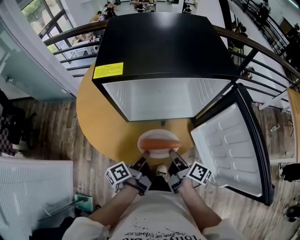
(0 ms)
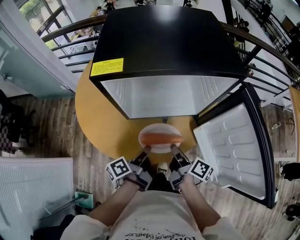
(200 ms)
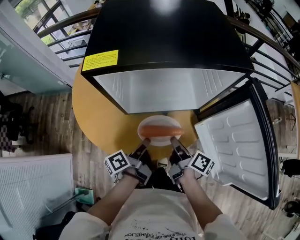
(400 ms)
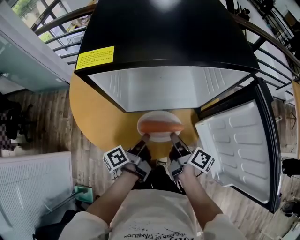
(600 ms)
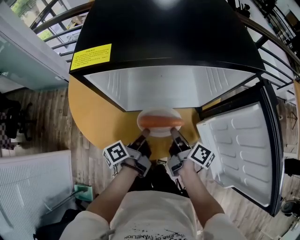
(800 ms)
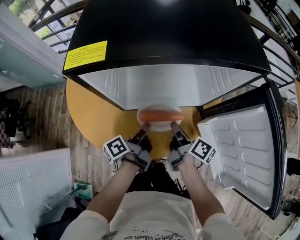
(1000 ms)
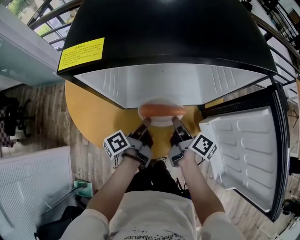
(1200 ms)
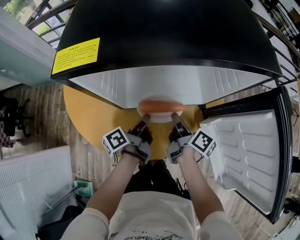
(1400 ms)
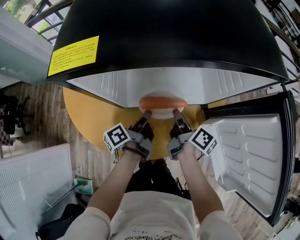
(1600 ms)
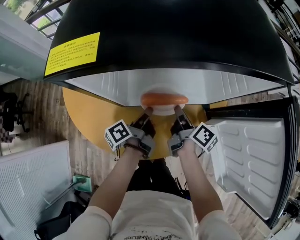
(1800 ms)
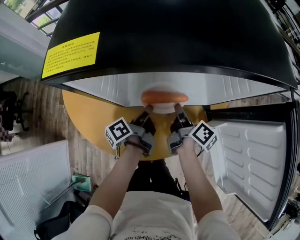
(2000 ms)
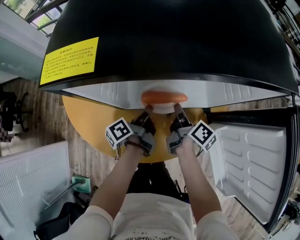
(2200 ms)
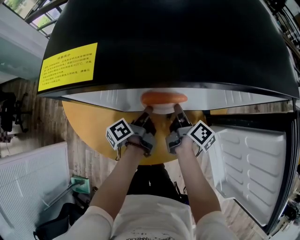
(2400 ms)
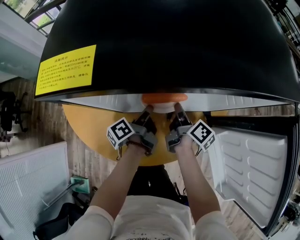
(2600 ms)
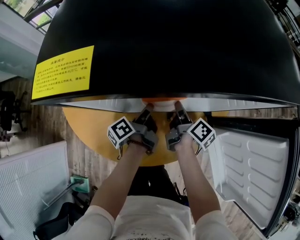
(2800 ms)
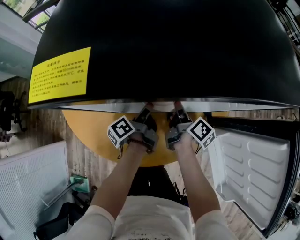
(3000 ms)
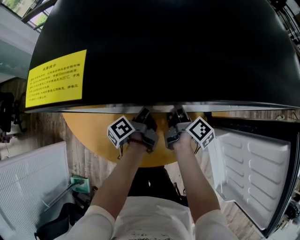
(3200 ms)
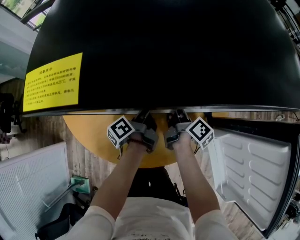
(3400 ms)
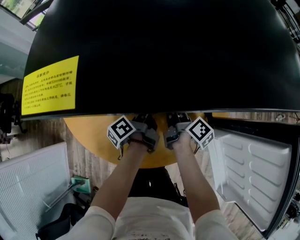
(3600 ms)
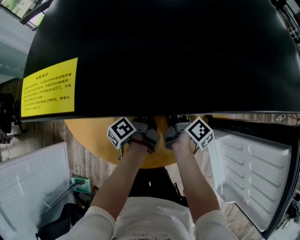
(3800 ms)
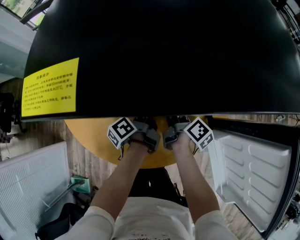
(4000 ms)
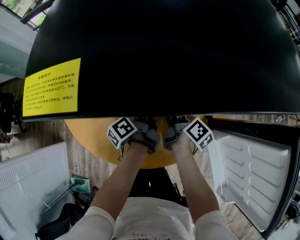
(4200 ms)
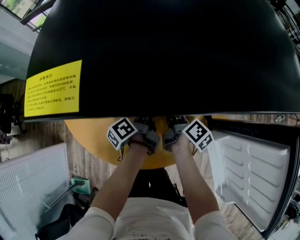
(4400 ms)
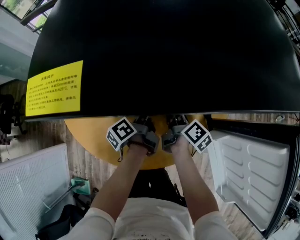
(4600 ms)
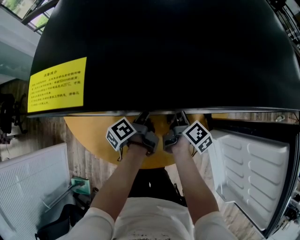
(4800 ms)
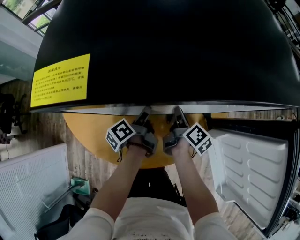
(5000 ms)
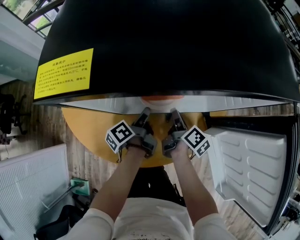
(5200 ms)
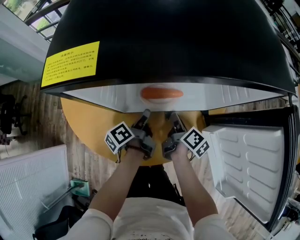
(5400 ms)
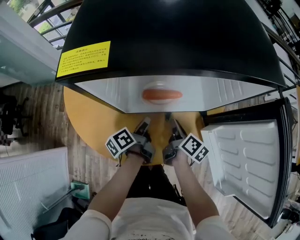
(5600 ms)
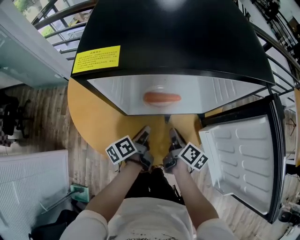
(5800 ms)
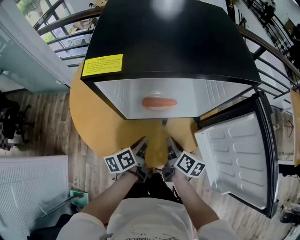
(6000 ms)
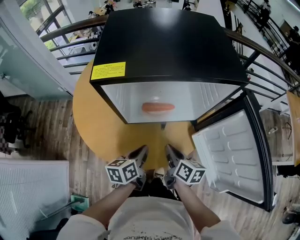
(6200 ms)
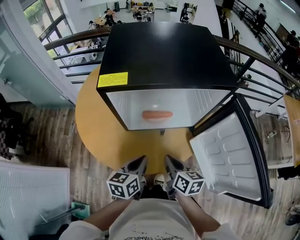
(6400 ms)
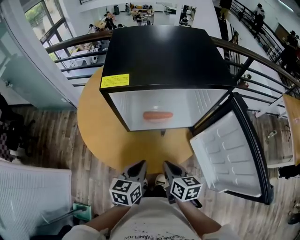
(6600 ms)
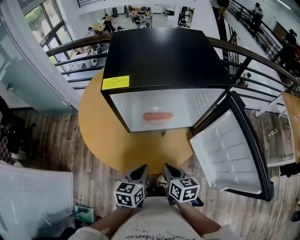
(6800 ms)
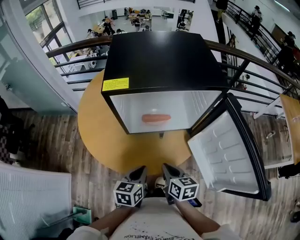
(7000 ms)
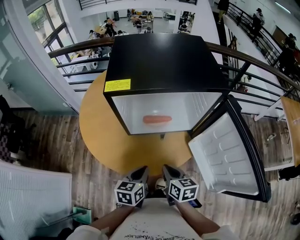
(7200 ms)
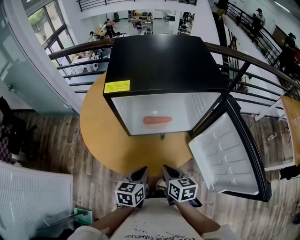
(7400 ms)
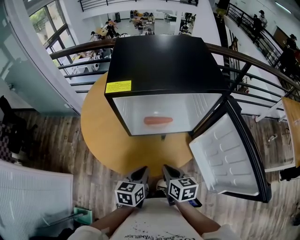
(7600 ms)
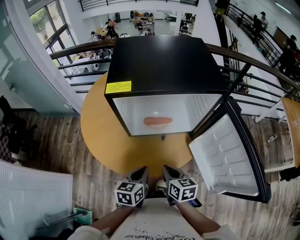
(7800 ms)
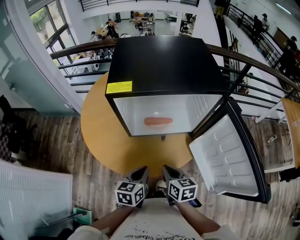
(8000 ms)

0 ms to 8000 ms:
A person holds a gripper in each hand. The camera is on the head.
0 ms to 1600 ms: The right gripper moves some 15 cm.
1600 ms to 3200 ms: The right gripper changes place by approximately 10 cm.
4800 ms to 6400 ms: The right gripper changes place by some 25 cm, and turns by some 40 degrees.

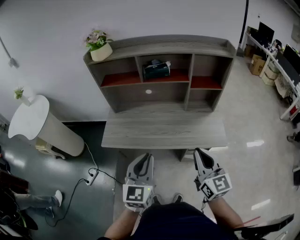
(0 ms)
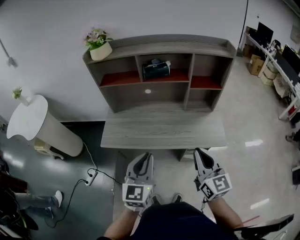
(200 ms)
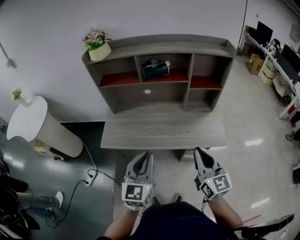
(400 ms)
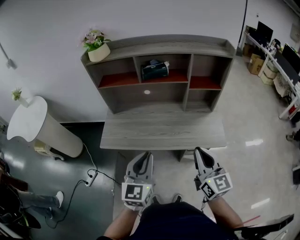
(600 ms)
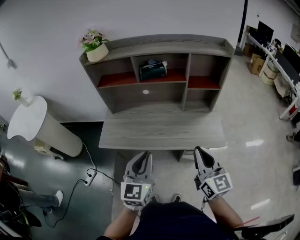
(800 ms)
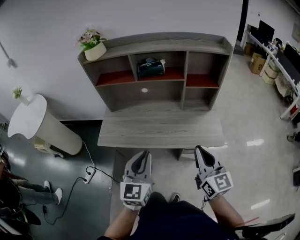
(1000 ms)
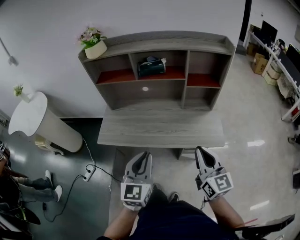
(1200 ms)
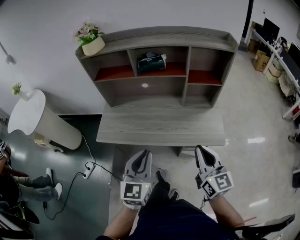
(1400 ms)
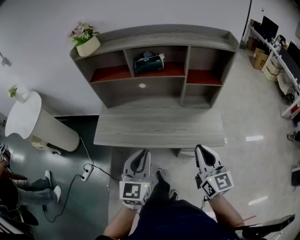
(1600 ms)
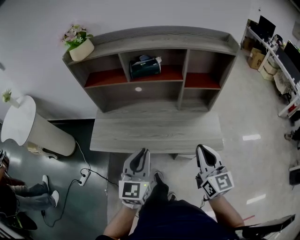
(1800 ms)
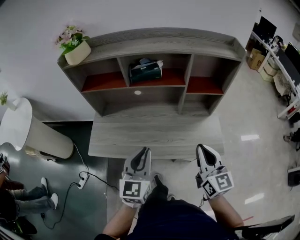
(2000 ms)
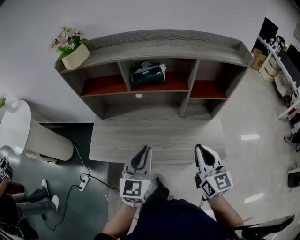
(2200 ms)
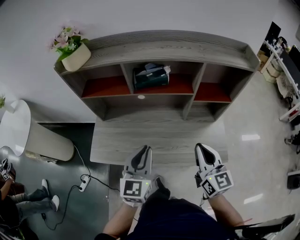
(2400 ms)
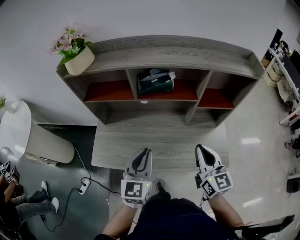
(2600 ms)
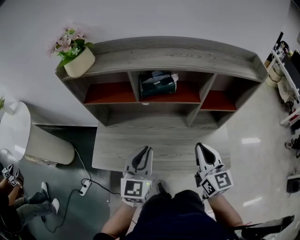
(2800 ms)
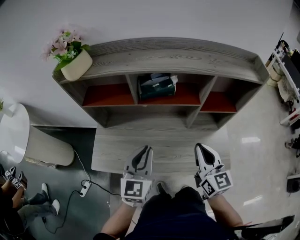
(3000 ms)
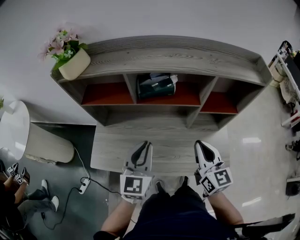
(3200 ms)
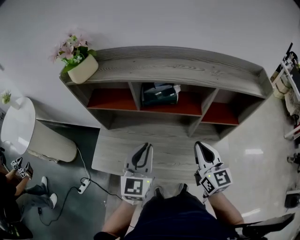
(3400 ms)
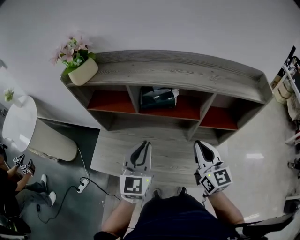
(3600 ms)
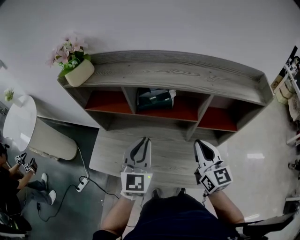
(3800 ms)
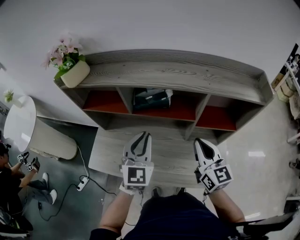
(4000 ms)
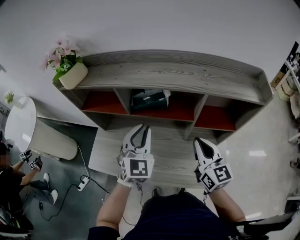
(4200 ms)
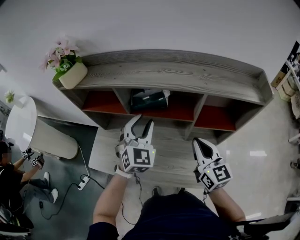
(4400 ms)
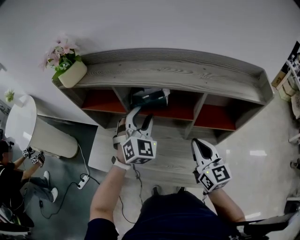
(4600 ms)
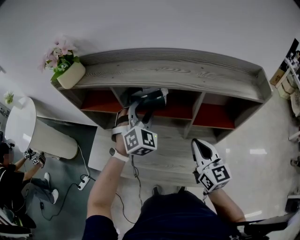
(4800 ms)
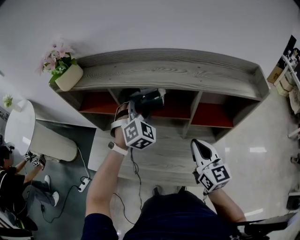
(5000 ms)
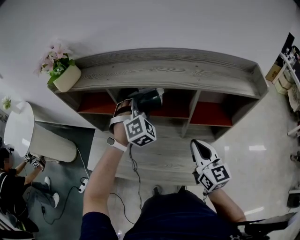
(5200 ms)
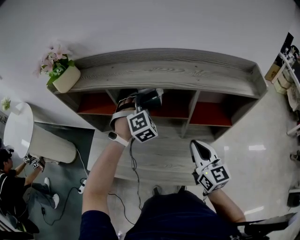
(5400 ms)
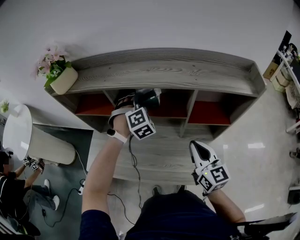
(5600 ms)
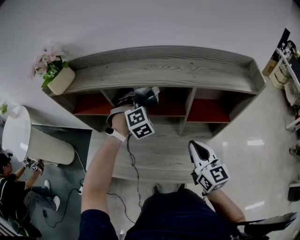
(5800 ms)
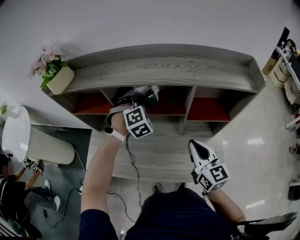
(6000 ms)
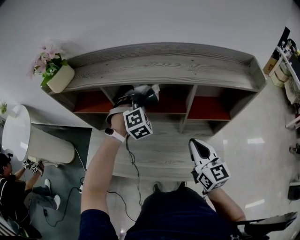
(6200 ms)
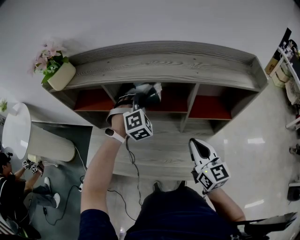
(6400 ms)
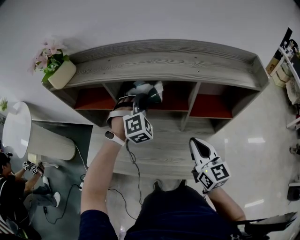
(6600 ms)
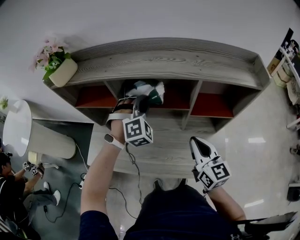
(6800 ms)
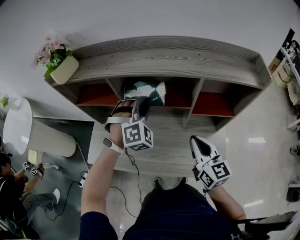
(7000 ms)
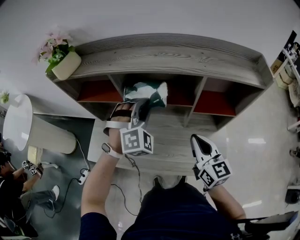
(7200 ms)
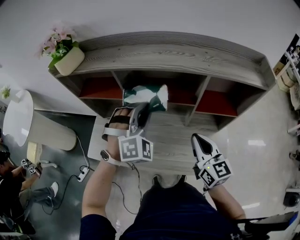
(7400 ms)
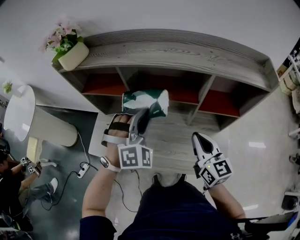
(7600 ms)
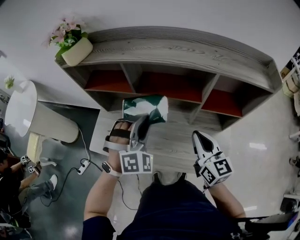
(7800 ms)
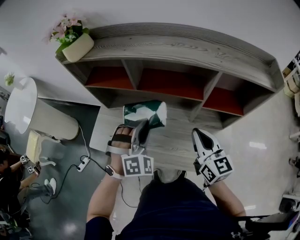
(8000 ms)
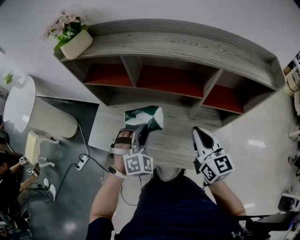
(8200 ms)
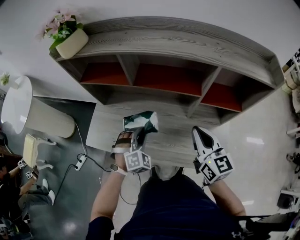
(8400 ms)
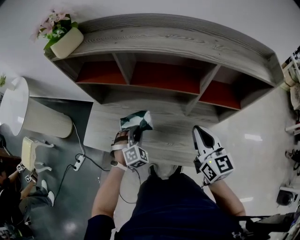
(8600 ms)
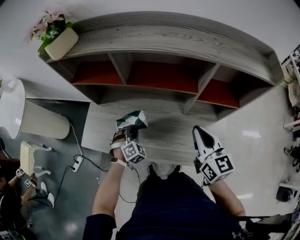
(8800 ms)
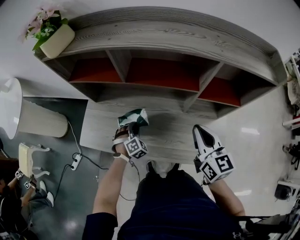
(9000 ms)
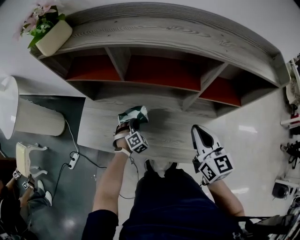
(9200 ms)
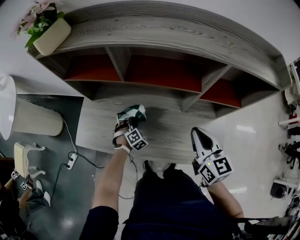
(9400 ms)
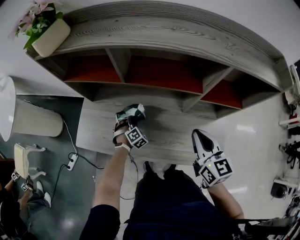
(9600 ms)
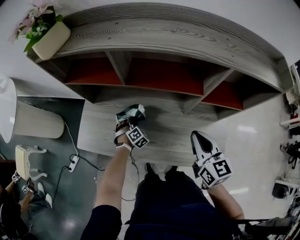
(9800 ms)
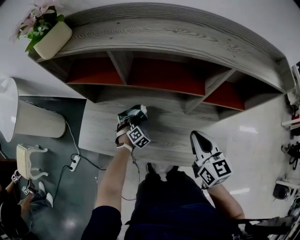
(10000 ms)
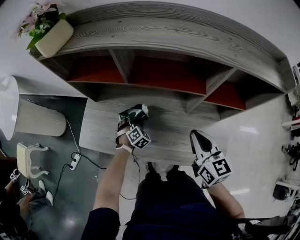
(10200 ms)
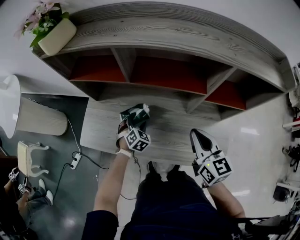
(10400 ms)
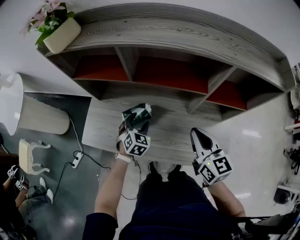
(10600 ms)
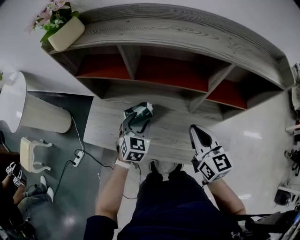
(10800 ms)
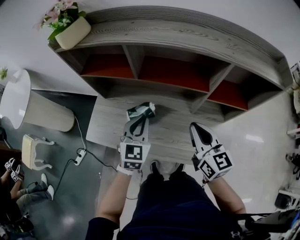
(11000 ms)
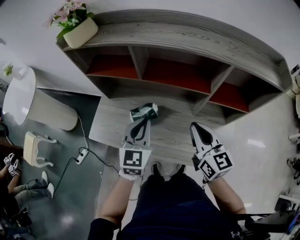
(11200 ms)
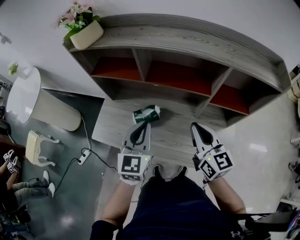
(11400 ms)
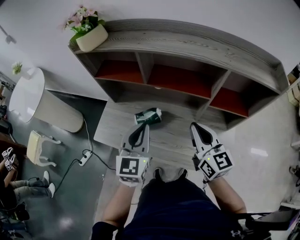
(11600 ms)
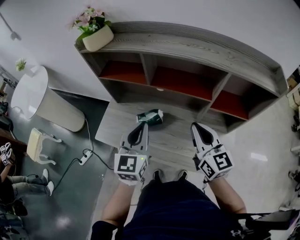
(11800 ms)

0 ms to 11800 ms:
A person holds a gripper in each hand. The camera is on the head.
0 ms to 1400 ms: The right gripper ends up roughly 5 cm from where it was.
1400 ms to 3000 ms: The grippers both shift forward by some 25 cm.
3000 ms to 4400 ms: Both grippers move forward and to the right, approximately 15 cm. The left gripper changes its angle by roughly 30 degrees, and opens its fingers.
4400 ms to 6000 ms: The left gripper goes about 10 cm forward and downward, and swivels some 50 degrees.
6000 ms to 7400 ms: The left gripper shifts approximately 15 cm backward and upward.
7400 ms to 8800 ms: The left gripper shifts approximately 30 cm downward, and rotates approximately 30 degrees.
8800 ms to 10400 ms: The left gripper moves forward, about 5 cm, goes downward and returns, some 10 cm each way, and opens.
10400 ms to 11800 ms: The left gripper travels upward and backward by roughly 30 cm, tips its fingers upward by about 40 degrees, and closes its fingers; the right gripper heads upward, covering some 10 cm.

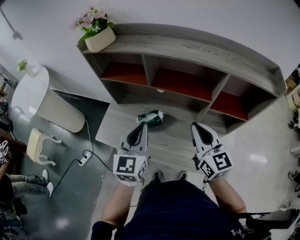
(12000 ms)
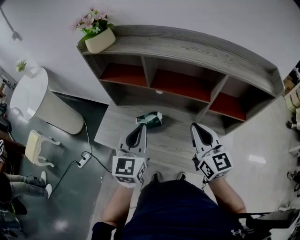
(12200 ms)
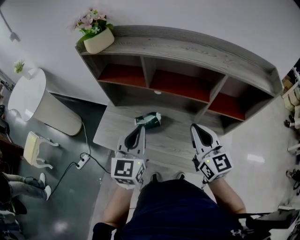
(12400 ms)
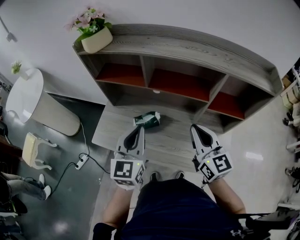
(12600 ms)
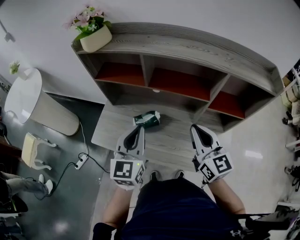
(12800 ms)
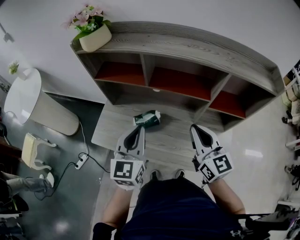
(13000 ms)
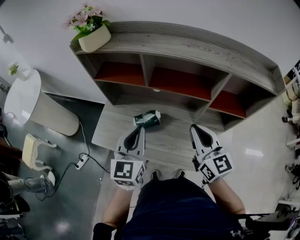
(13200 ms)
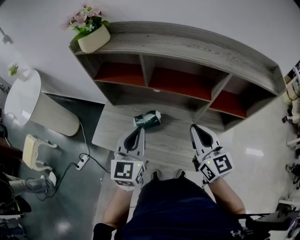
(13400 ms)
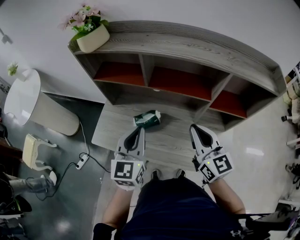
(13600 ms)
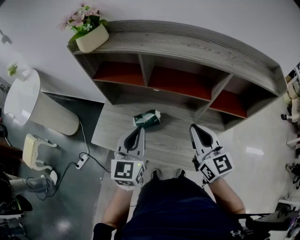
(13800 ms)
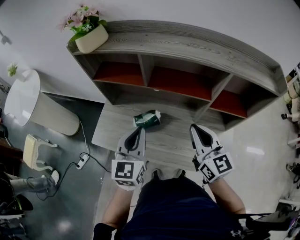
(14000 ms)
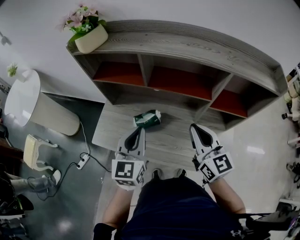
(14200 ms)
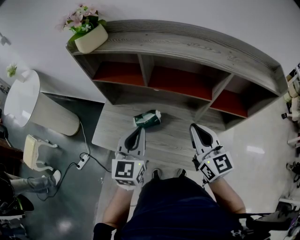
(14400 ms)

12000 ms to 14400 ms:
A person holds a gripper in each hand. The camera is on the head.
12000 ms to 14400 ms: The grippers make only small movements.

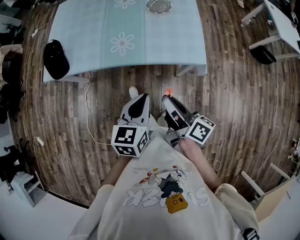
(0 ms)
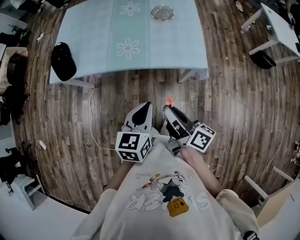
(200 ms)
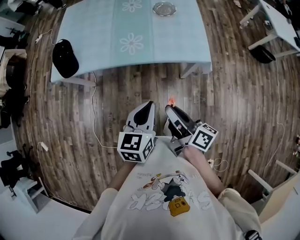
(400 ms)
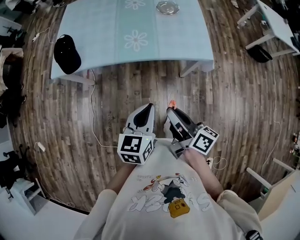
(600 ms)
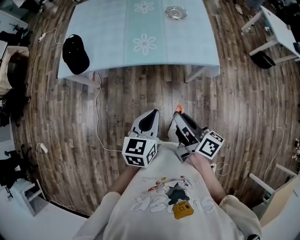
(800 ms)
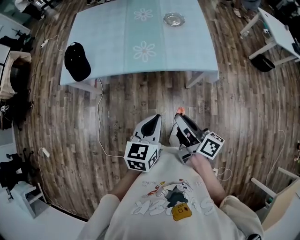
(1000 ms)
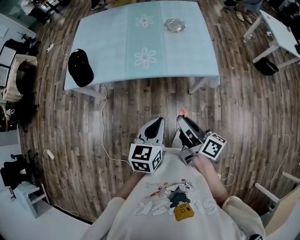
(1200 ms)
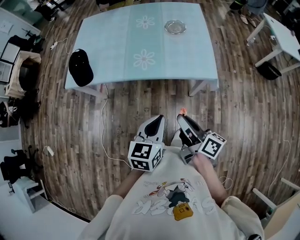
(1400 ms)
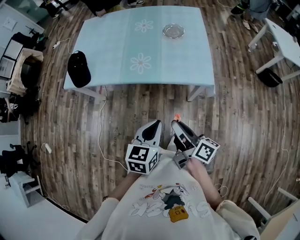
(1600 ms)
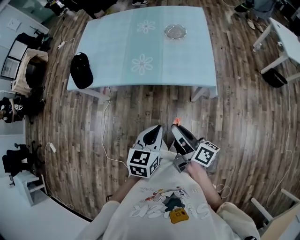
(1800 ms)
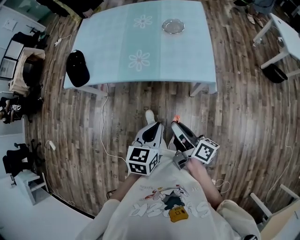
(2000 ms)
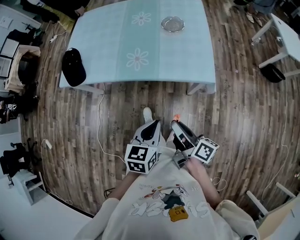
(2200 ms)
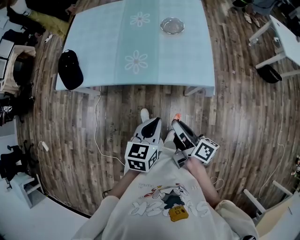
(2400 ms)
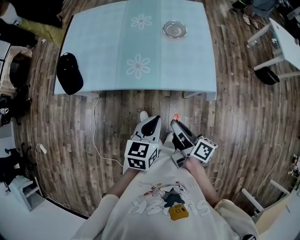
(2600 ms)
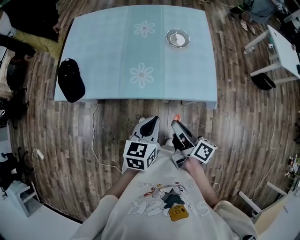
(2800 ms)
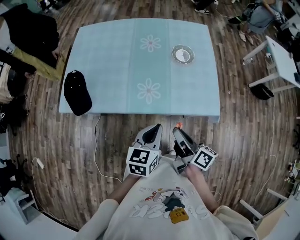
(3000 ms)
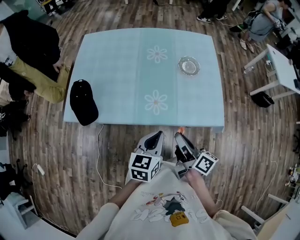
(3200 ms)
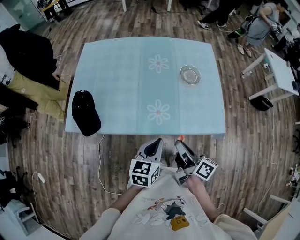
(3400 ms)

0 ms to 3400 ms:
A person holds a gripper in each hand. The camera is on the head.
0 ms to 1600 ms: The two grippers go roughly 10 cm backward. The right gripper reaches roughly 10 cm to the left, then returns; the left gripper reaches some 10 cm to the left, then returns.
1600 ms to 3400 ms: The two grippers go some 30 cm forward and to the left.
